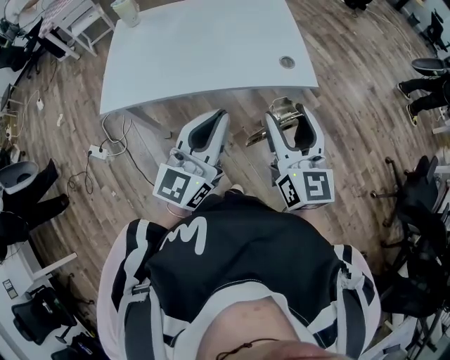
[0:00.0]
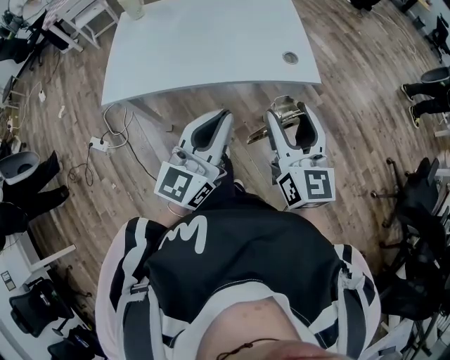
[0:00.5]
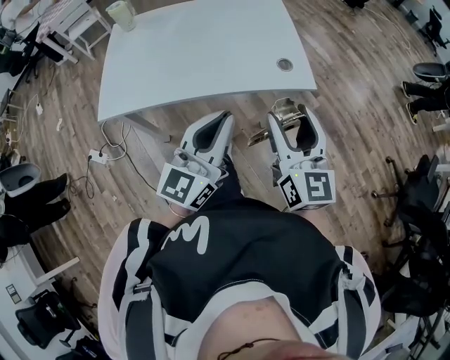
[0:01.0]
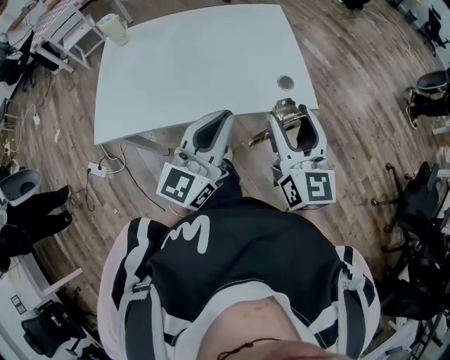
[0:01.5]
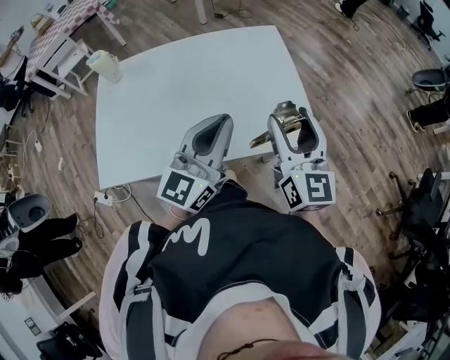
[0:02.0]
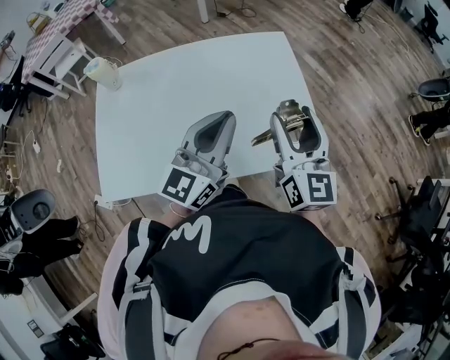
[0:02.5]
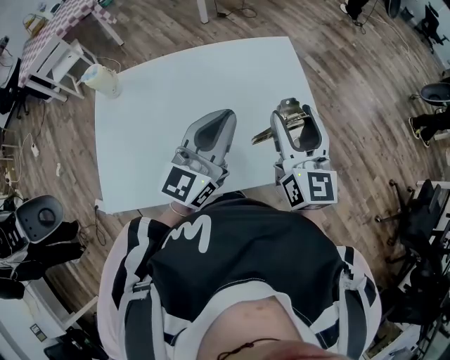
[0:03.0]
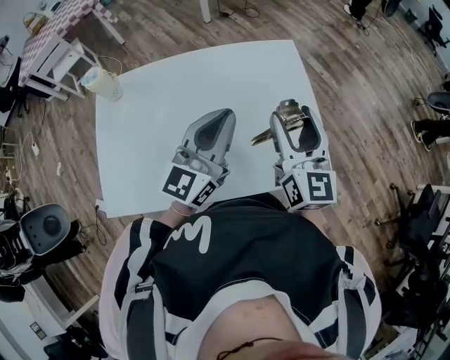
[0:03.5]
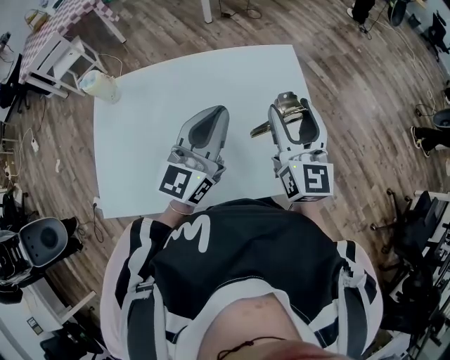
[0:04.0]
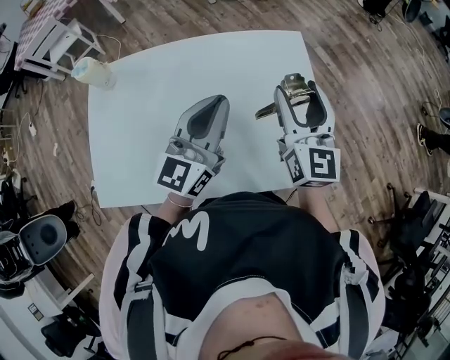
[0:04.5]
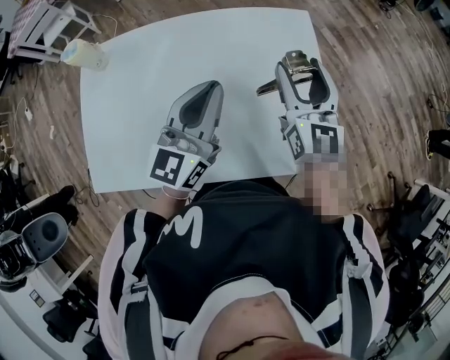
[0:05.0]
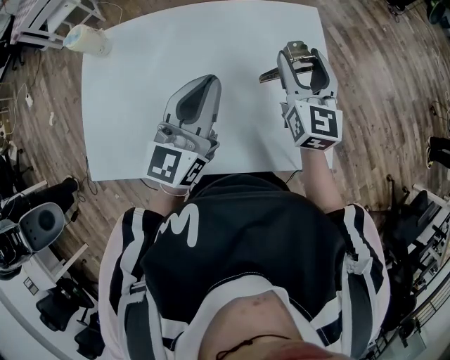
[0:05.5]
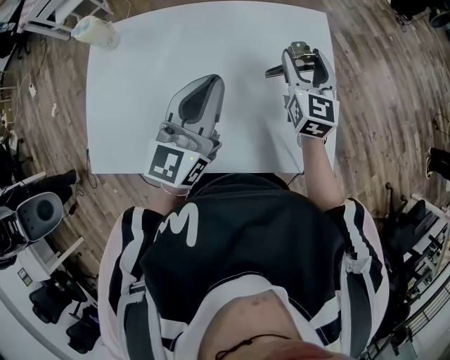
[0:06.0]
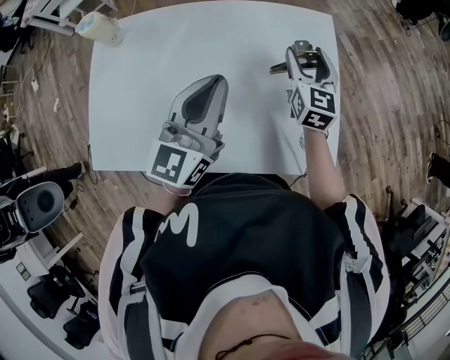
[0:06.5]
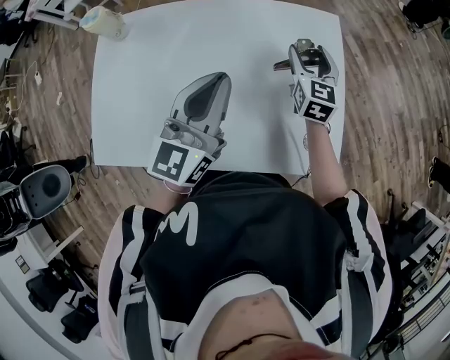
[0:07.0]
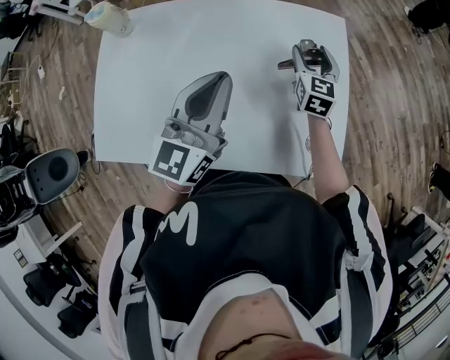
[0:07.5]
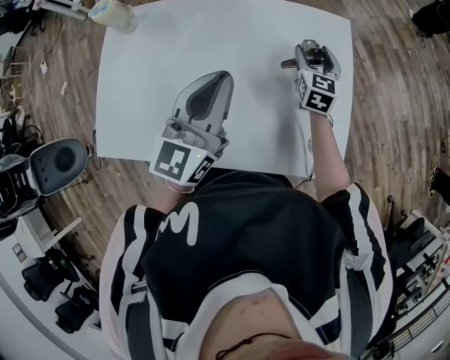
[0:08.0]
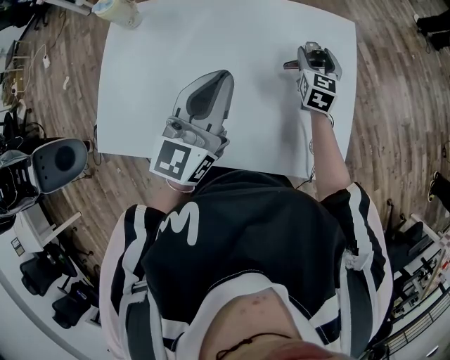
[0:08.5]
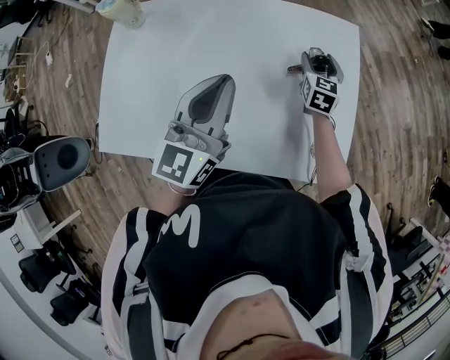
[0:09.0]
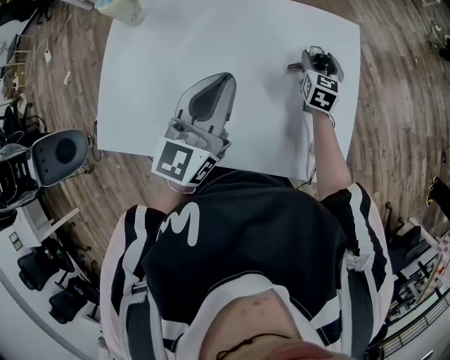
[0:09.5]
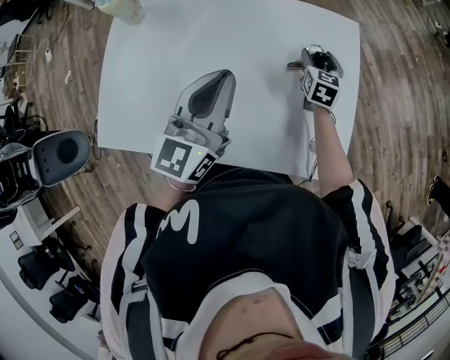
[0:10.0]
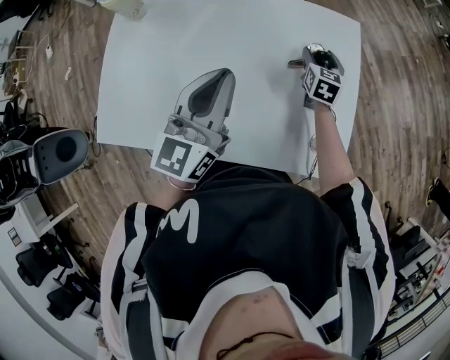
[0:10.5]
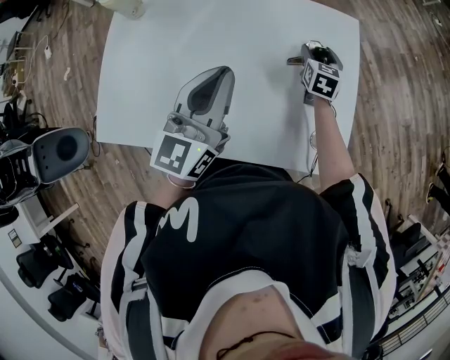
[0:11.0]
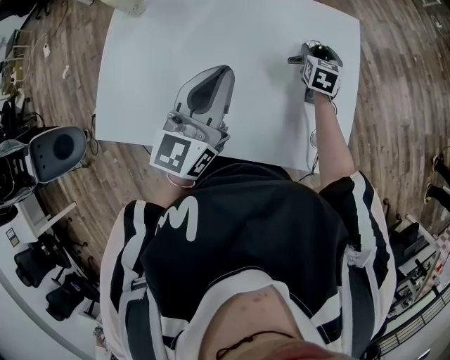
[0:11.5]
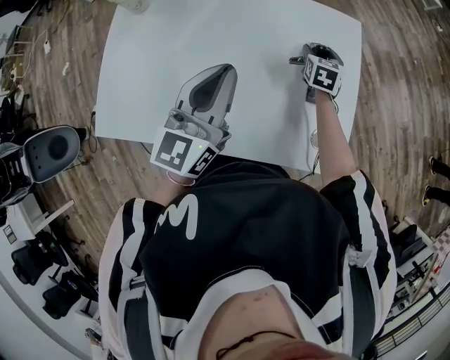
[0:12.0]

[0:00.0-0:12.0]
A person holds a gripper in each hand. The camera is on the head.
0:00.0 to 0:02.0: The two grippers go roughly 25 cm forward.
0:02.0 to 0:04.0: The right gripper travels forward by approximately 15 cm. The left gripper shifts about 15 cm forward and to the left.
0:04.0 to 0:06.0: The right gripper travels downward and forward by some 15 cm.
0:06.0 to 0:08.0: The right gripper moves downward and forward, some 10 cm.
0:08.0 to 0:10.0: The right gripper travels downward by roughly 5 cm.
0:10.0 to 0:12.0: The grippers move only a little.

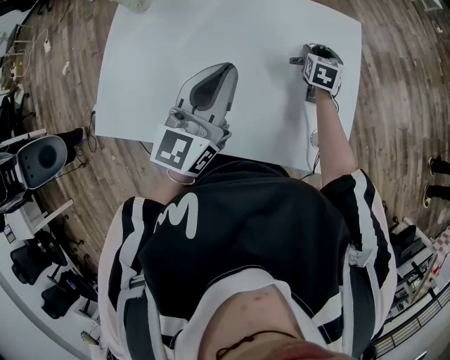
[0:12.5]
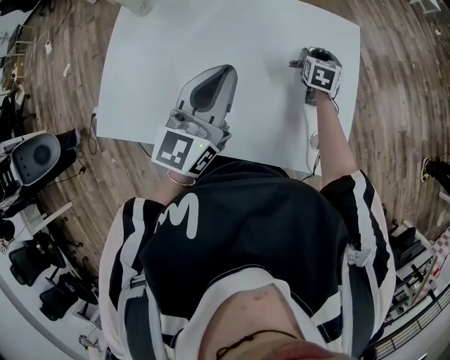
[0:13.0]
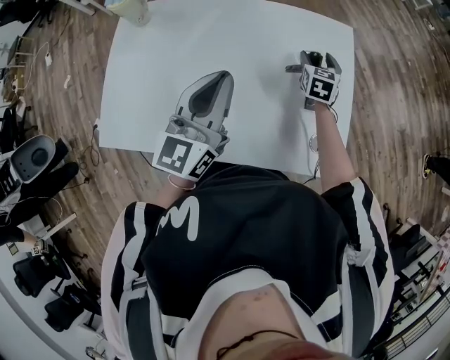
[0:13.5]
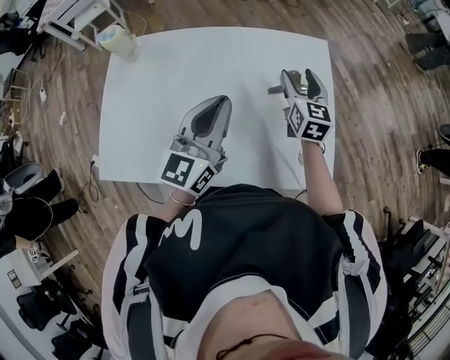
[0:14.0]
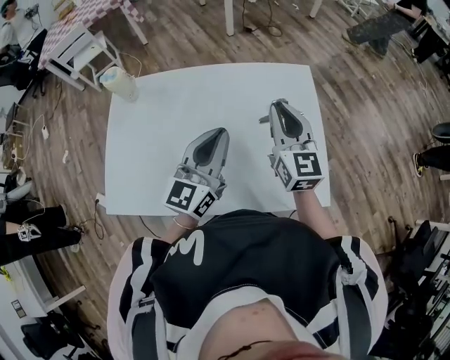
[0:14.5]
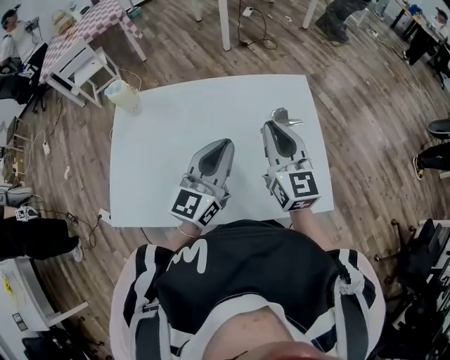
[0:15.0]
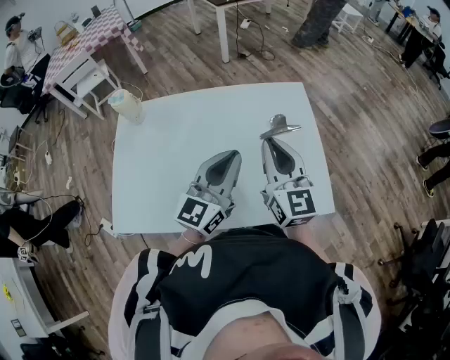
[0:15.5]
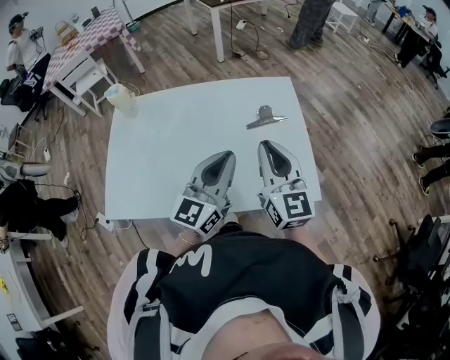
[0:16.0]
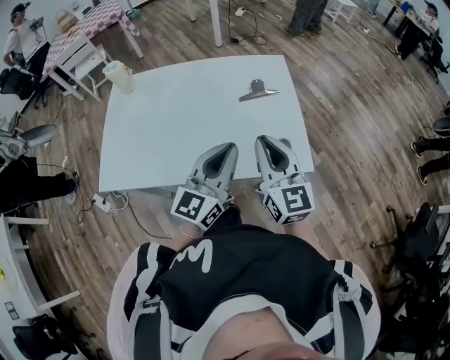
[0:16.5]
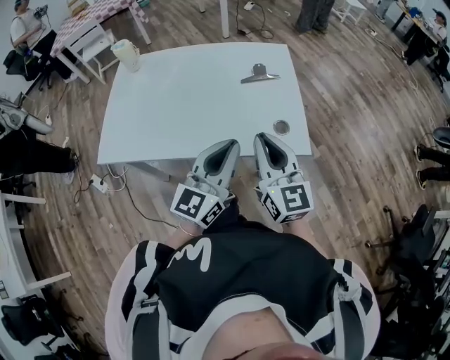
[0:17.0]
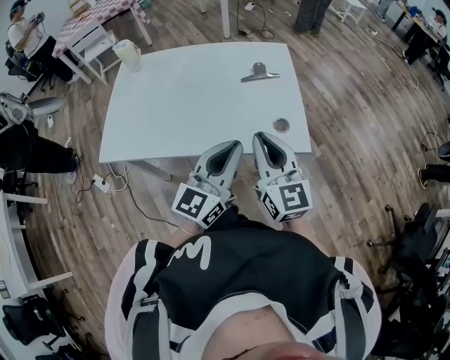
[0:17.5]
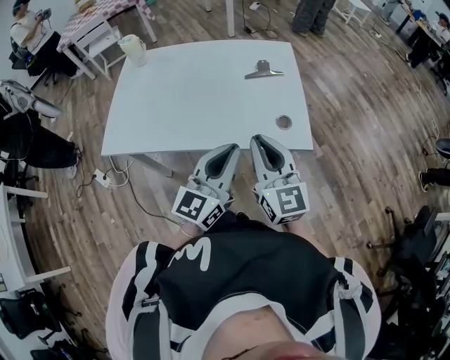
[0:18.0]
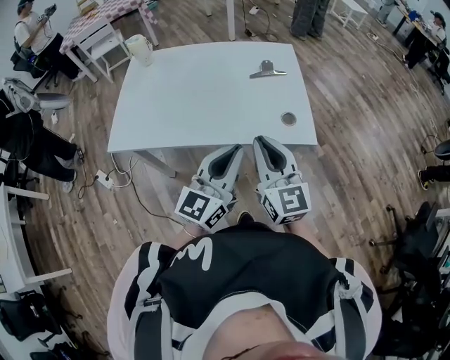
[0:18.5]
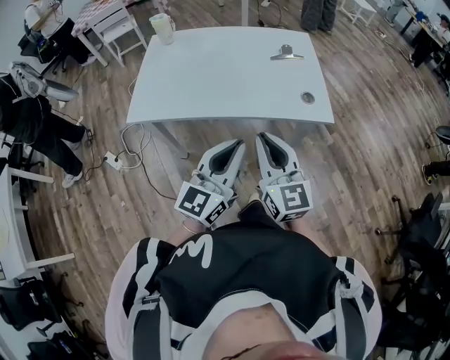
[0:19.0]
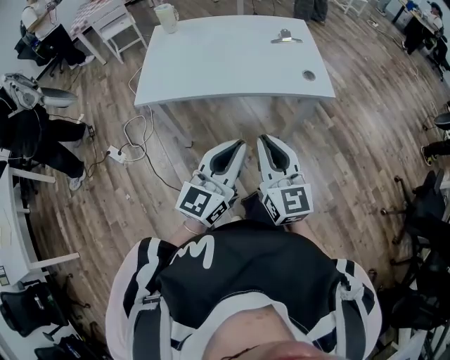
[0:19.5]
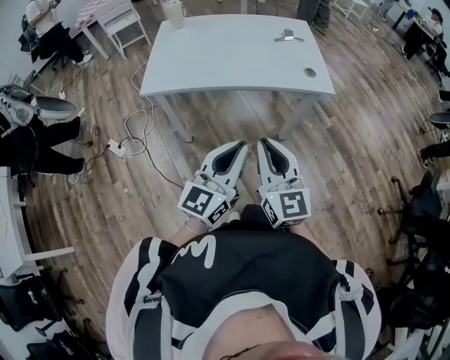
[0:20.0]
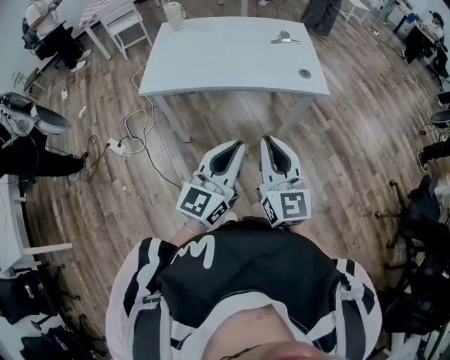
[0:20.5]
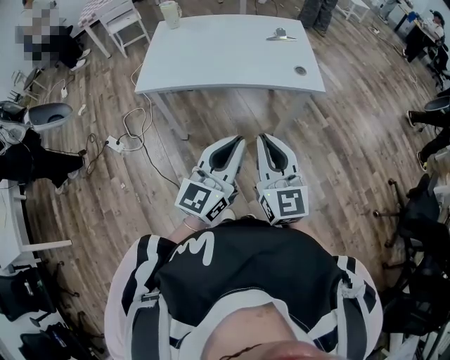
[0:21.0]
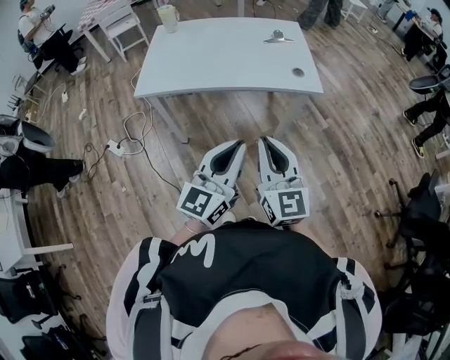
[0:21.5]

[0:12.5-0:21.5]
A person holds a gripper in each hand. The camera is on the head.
0:12.5 to 0:14.5: The right gripper heads upward and backward, covering roughly 30 cm, points its fingers roughly 40 degrees further upward, and closes up.
0:14.5 to 0:17.0: The left gripper travels backward and to the right by roughly 25 cm; the right gripper is displaced backward by roughly 30 cm.
0:17.0 to 0:19.5: The grippers both shift backward and to the left by some 30 cm.
0:19.5 to 0:21.5: The two grippers go approximately 10 cm backward and to the right.

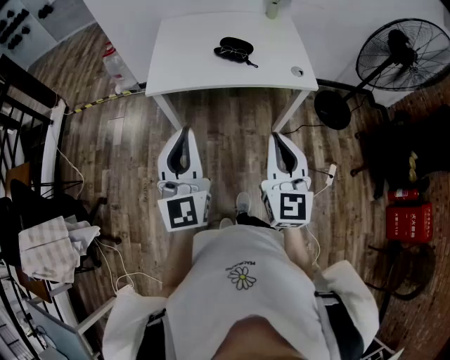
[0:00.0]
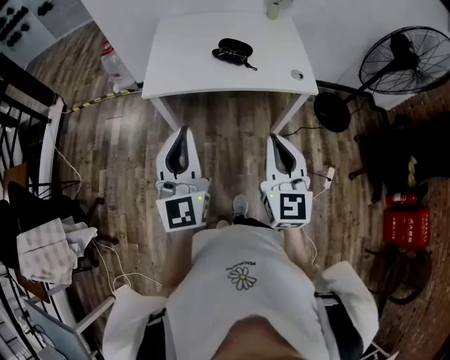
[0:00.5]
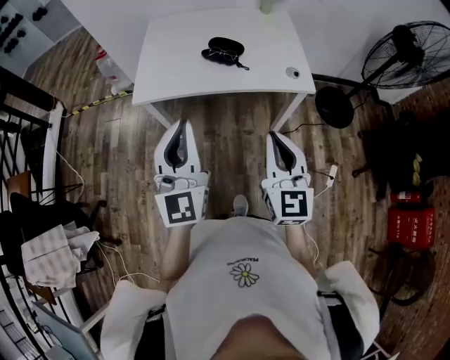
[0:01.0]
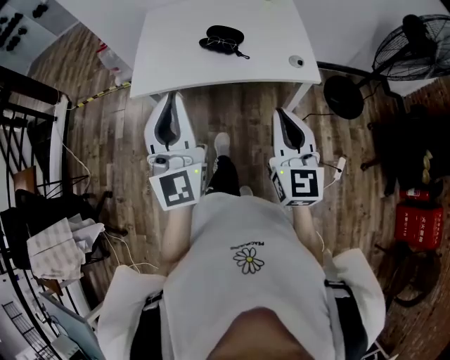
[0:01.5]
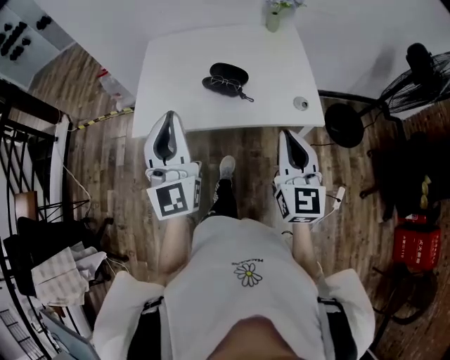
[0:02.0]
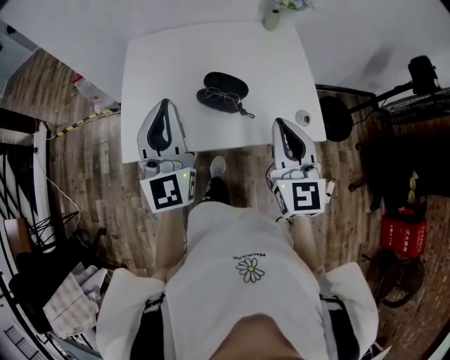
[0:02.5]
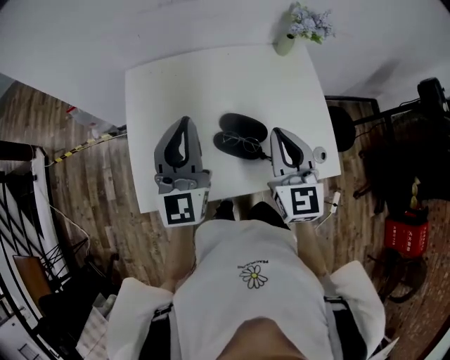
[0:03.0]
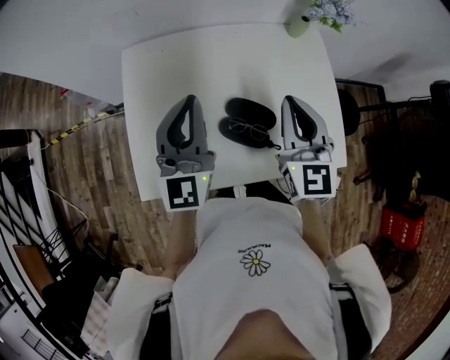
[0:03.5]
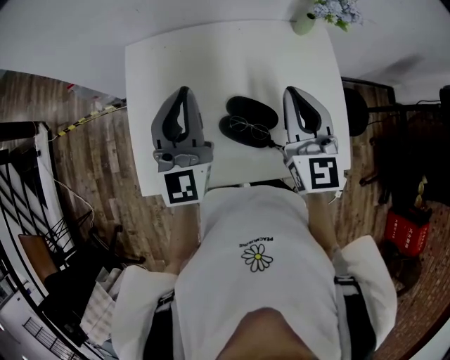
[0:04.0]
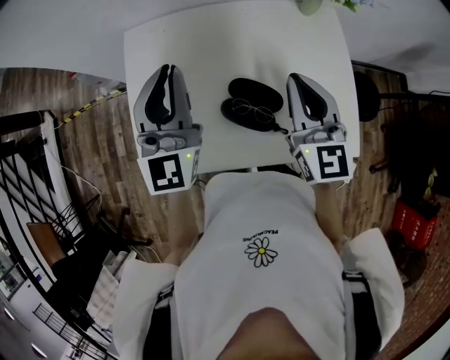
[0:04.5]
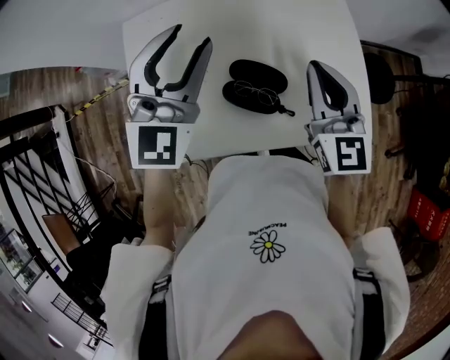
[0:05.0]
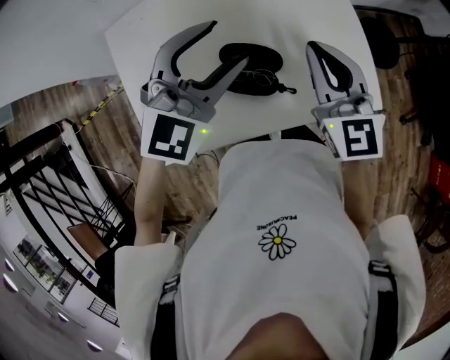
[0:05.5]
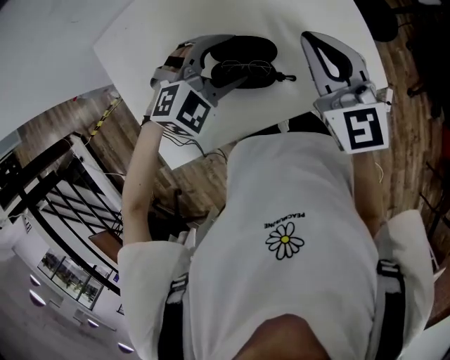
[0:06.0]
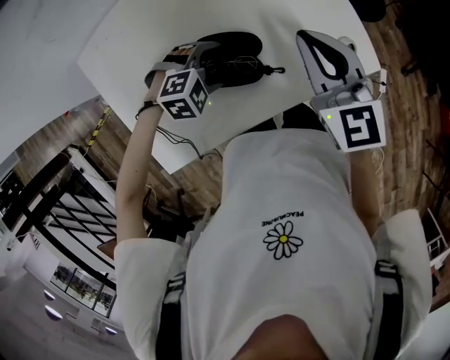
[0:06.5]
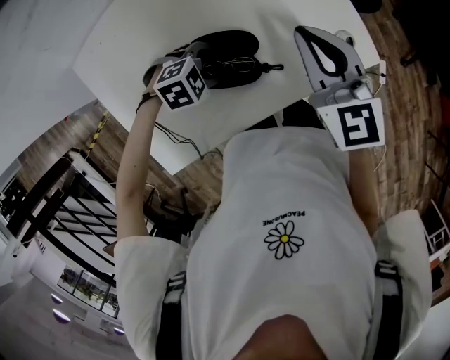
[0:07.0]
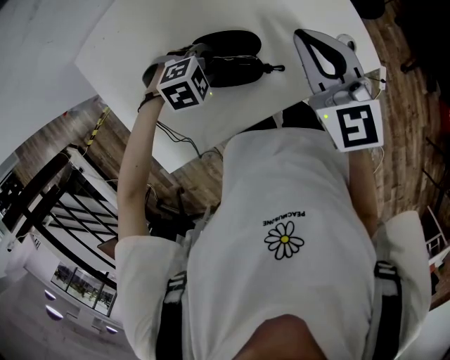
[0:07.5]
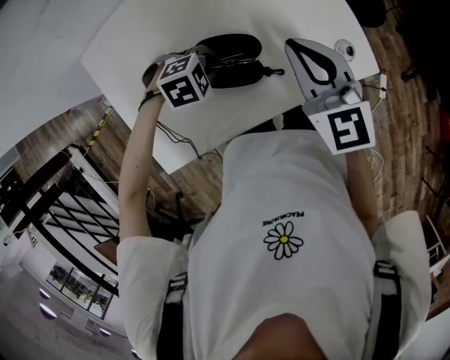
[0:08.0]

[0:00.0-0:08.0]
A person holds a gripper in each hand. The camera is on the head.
0:00.0 to 0:02.0: The right gripper heads forward and to the right, covering approximately 25 cm. The left gripper heads forward, covering roughly 25 cm.
0:02.0 to 0:04.0: Both grippers move forward, roughly 35 cm.
0:04.0 to 0:06.0: The left gripper is displaced downward by some 20 cm, tilts its fingers roughly 60 degrees downward, and opens up. The right gripper ends up about 10 cm from where it was.
0:06.0 to 0:08.0: The left gripper is displaced downward by roughly 10 cm, changes its angle by about 30 degrees, and closes its fingers.
